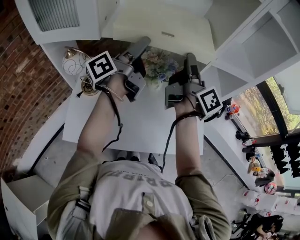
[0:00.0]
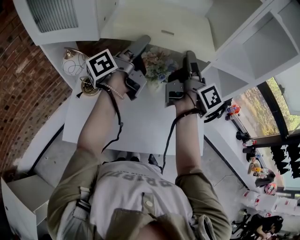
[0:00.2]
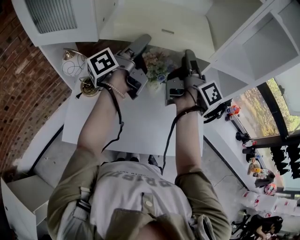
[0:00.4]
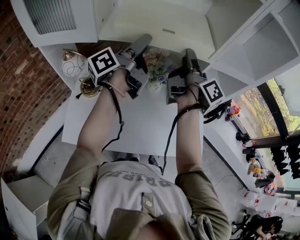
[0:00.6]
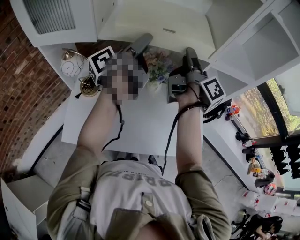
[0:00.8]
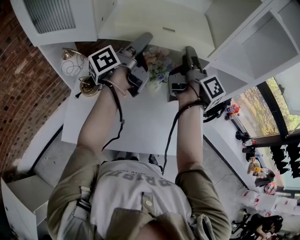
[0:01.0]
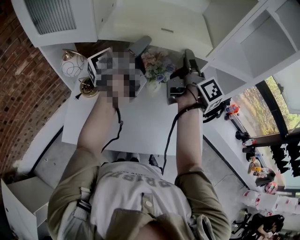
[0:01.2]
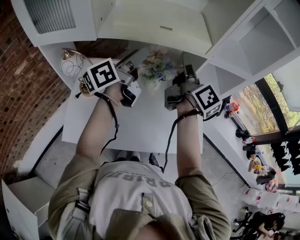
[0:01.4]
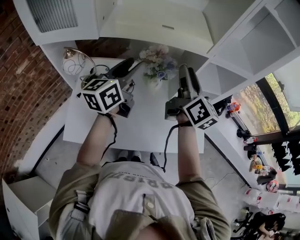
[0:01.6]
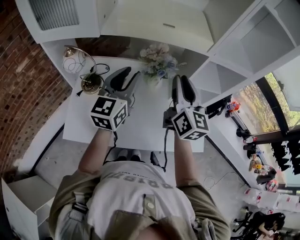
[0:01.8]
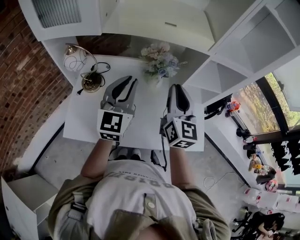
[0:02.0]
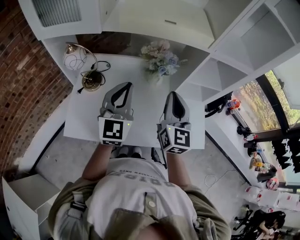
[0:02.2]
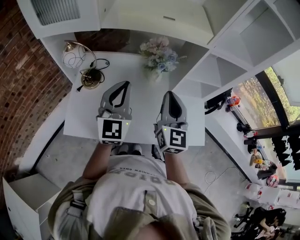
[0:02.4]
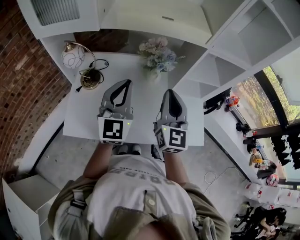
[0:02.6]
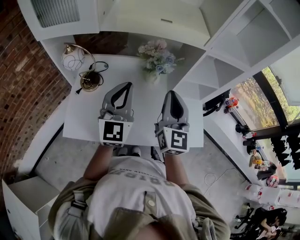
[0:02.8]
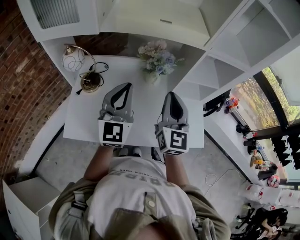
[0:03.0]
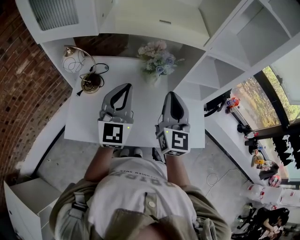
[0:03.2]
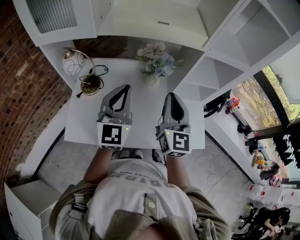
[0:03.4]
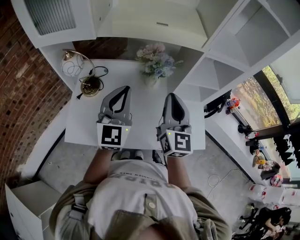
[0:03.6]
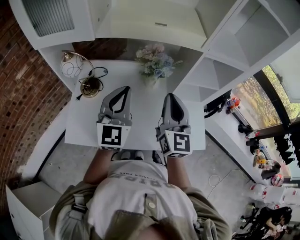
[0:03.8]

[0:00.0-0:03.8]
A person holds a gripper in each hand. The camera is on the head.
0:00.0 to 0:01.2: The grippers stay close to where they were, moving slightly.
0:01.2 to 0:02.6: The left gripper travels backward and downward by roughly 20 cm, rolls clockwise, seen from behind, by about 90 degrees, and closes up. Meanwhile the right gripper travels backward by some 20 cm, twists some 70 degrees counterclockwise, seen from behind, and closes.
0:02.6 to 0:03.8: The grippers stay close to where they were, moving slightly.

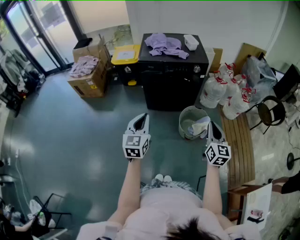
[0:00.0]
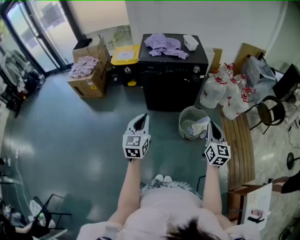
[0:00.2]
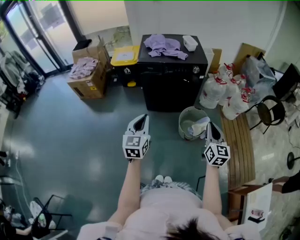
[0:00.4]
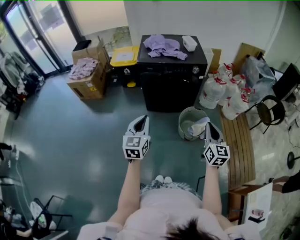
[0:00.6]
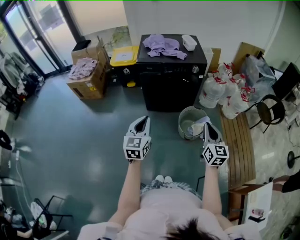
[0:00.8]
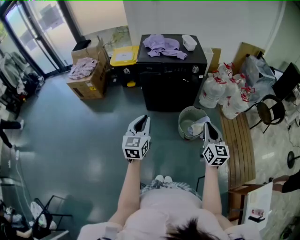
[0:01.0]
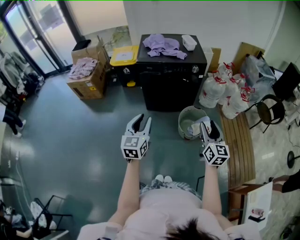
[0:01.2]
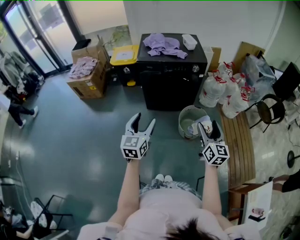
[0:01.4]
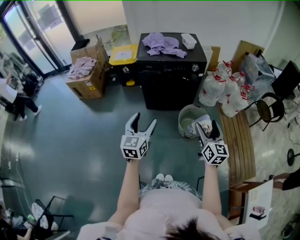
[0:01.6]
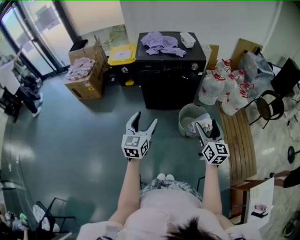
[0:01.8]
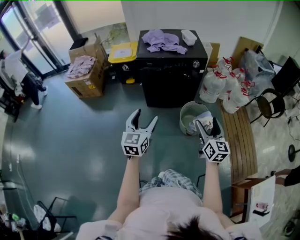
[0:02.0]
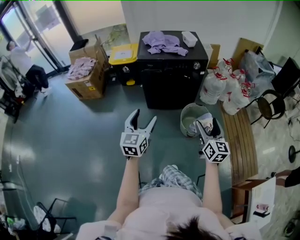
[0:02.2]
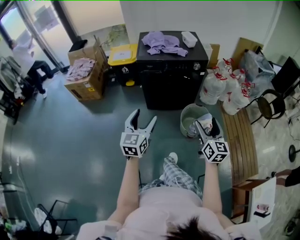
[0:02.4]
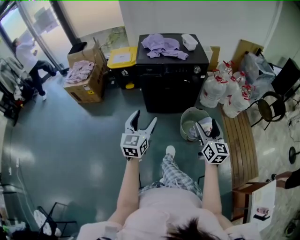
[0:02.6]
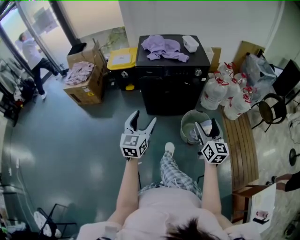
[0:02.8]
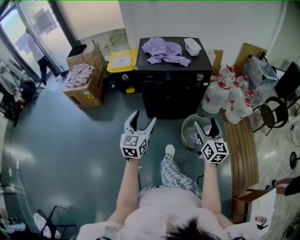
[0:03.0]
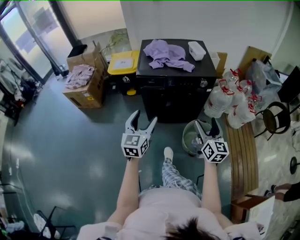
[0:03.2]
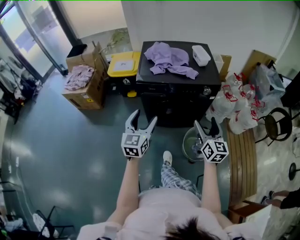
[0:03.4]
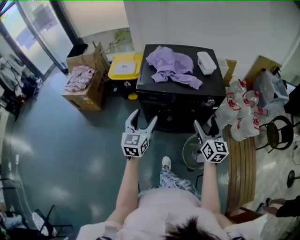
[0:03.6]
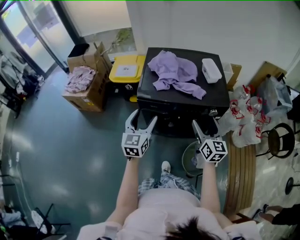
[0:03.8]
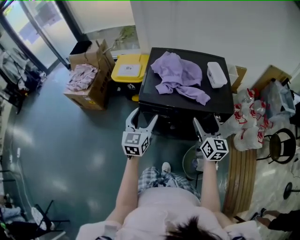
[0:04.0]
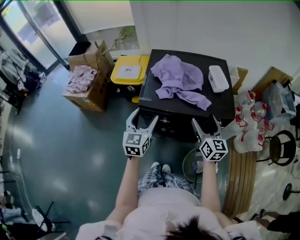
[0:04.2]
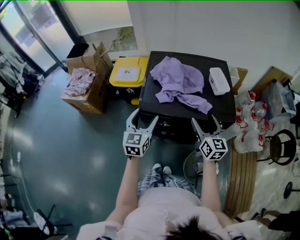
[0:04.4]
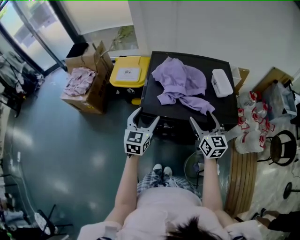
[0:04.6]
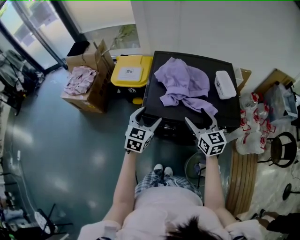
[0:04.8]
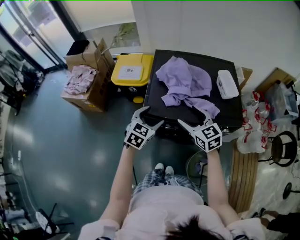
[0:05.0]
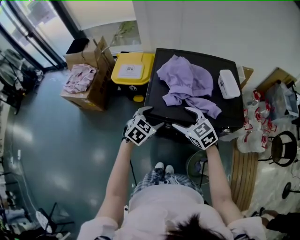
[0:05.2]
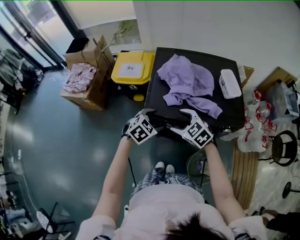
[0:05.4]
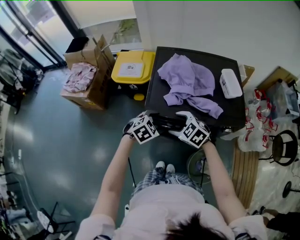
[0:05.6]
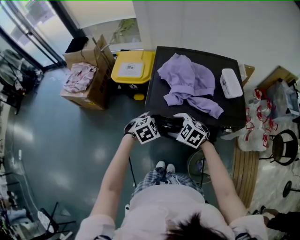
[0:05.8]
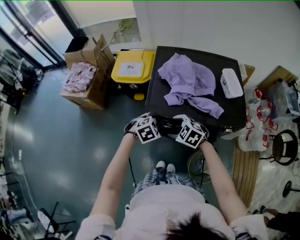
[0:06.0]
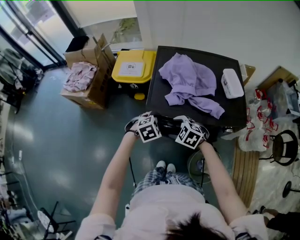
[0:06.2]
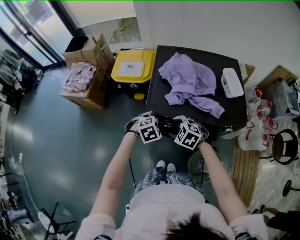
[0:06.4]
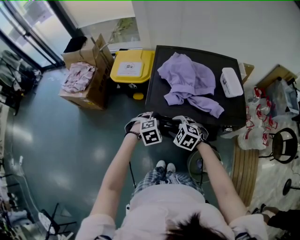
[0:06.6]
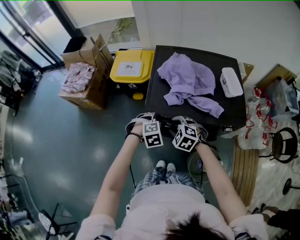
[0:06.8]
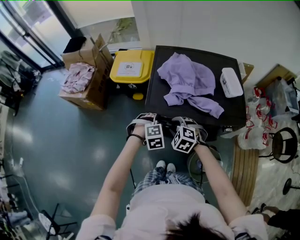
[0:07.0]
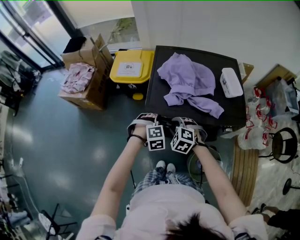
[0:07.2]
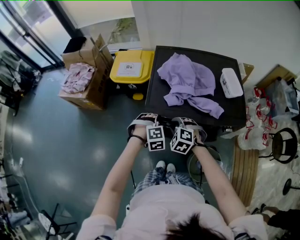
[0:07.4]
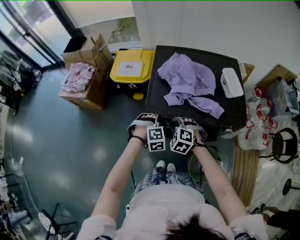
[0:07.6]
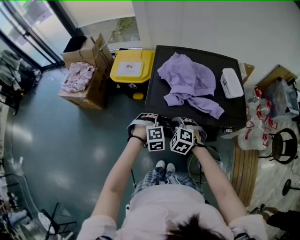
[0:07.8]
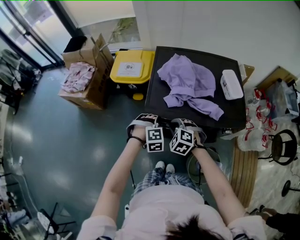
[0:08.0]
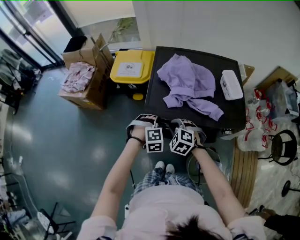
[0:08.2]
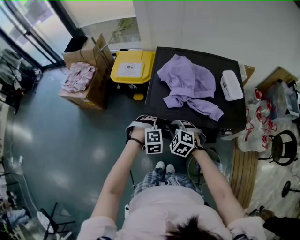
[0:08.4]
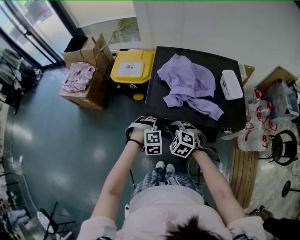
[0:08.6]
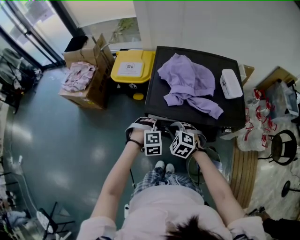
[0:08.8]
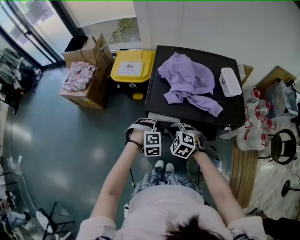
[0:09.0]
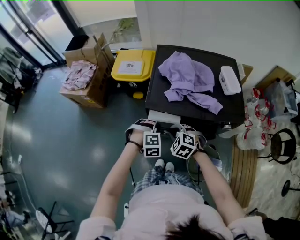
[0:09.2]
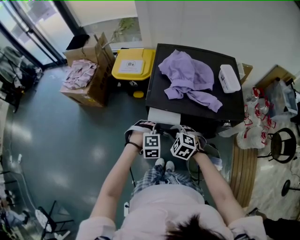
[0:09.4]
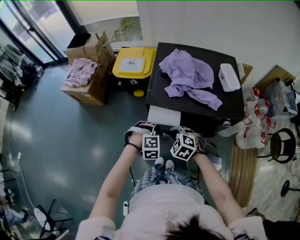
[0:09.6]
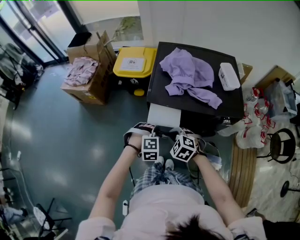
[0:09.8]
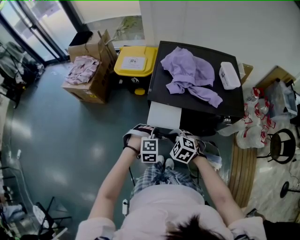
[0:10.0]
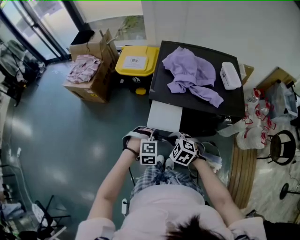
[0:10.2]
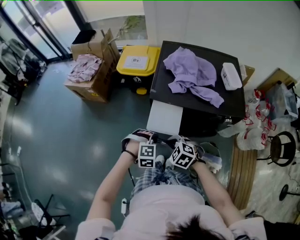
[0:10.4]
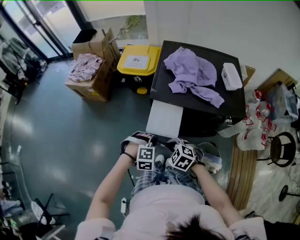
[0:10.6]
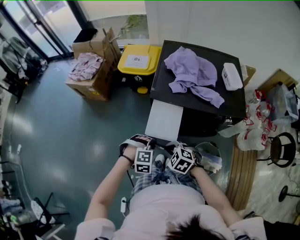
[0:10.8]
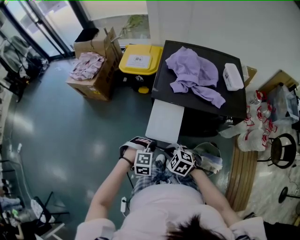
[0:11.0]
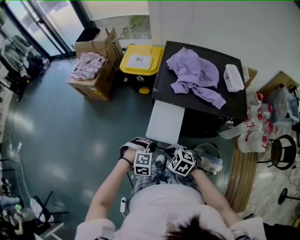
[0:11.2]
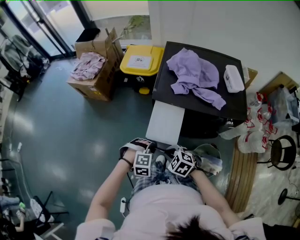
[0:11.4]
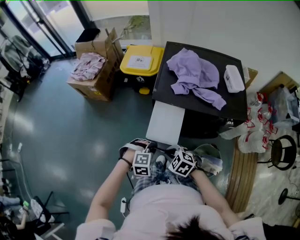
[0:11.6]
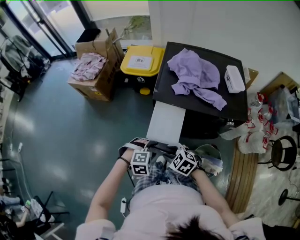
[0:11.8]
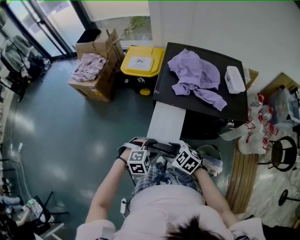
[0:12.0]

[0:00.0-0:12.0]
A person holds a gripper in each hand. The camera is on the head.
0:00.0 to 0:01.6: The left gripper opens its fingers, while the right gripper opens.
0:01.6 to 0:03.0: The two grippers go some 15 cm forward.
0:03.0 to 0:04.4: The pair of grippers is taken forward, some 40 cm.
0:04.4 to 0:06.0: The left gripper shifts some 15 cm downward, and tips its fingers downward by roughly 50 degrees, while the right gripper shifts about 25 cm to the left and downward, and tips its fingers downward by about 50 degrees.
0:06.0 to 0:07.6: The left gripper swivels roughly 40 degrees, and closes. The right gripper swivels some 20 degrees, and closes its fingers.
0:07.6 to 0:09.0: The grippers move only a little.
0:09.0 to 0:10.4: The two grippers go some 15 cm backward.
0:10.4 to 0:12.0: The right gripper opens; the left gripper opens its fingers.

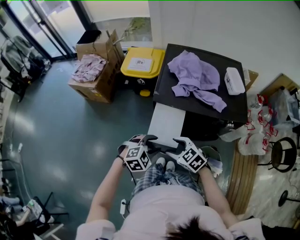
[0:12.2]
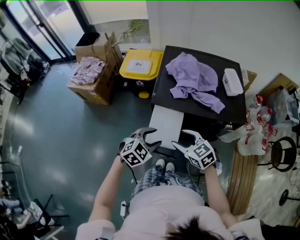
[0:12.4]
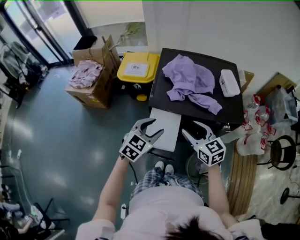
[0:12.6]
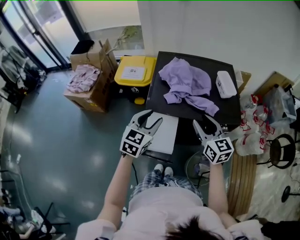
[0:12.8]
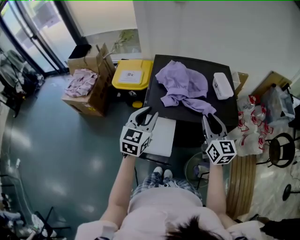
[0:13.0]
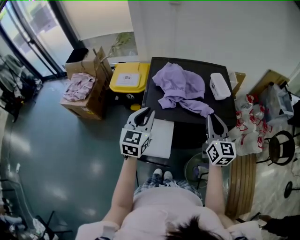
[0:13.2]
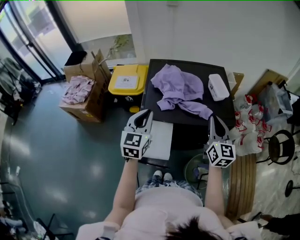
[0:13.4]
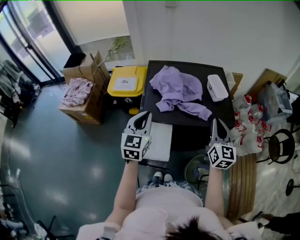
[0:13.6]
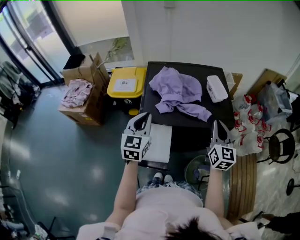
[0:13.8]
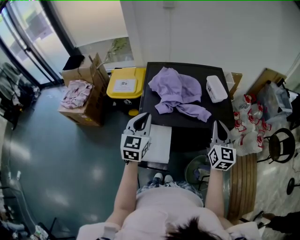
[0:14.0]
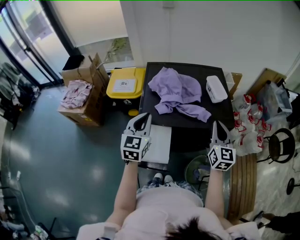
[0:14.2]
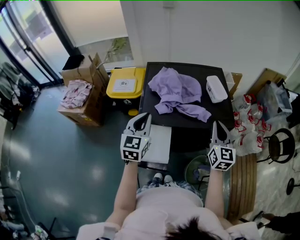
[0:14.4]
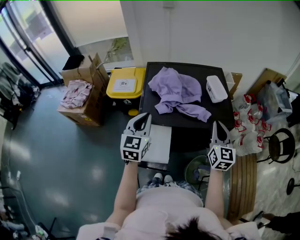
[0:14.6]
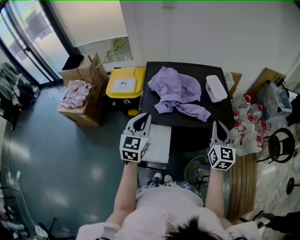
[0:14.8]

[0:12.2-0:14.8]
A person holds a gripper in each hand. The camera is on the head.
0:12.2 to 0:13.4: The left gripper moves forward and upward, some 25 cm, angles its fingers upward, by roughly 40 degrees, and closes, while the right gripper heads to the right, upward and forward, covering roughly 35 cm, points its fingers some 40 degrees further upward, and closes.
0:13.4 to 0:14.8: The grippers make only small movements.

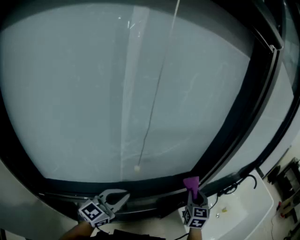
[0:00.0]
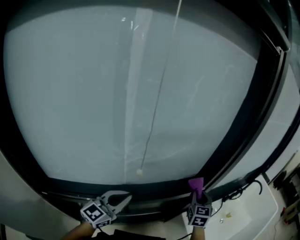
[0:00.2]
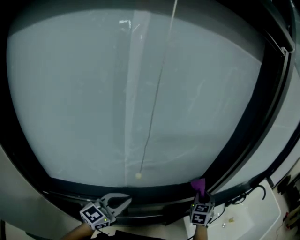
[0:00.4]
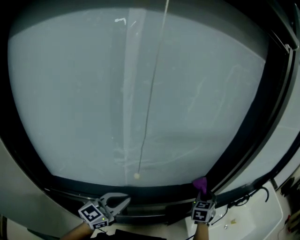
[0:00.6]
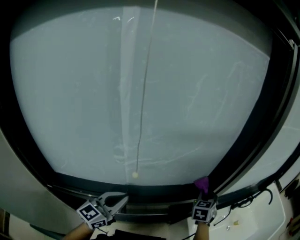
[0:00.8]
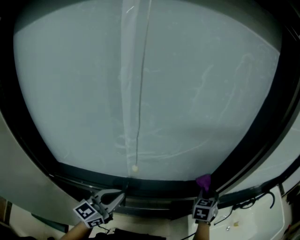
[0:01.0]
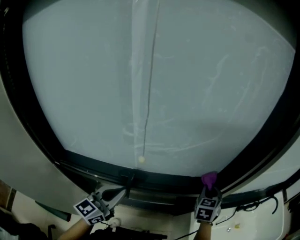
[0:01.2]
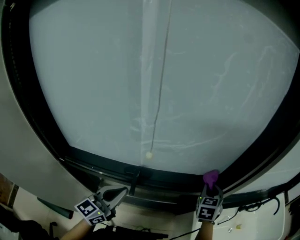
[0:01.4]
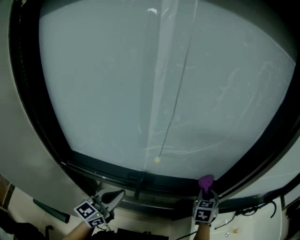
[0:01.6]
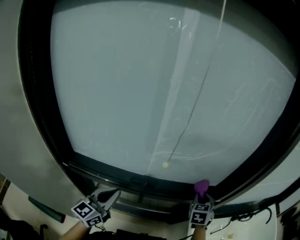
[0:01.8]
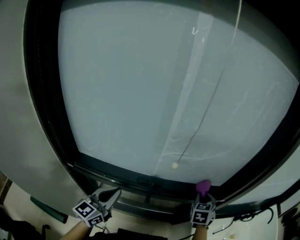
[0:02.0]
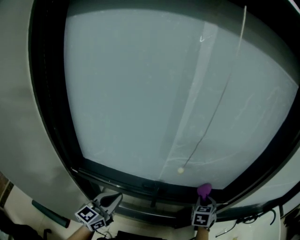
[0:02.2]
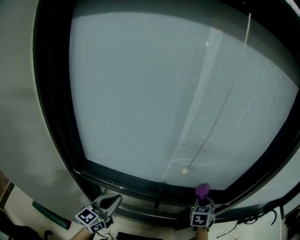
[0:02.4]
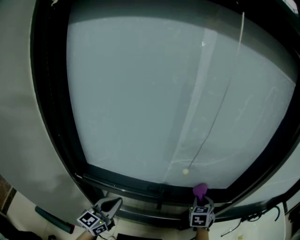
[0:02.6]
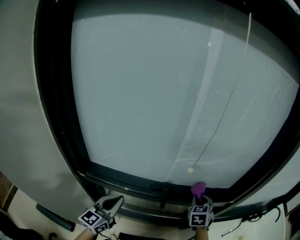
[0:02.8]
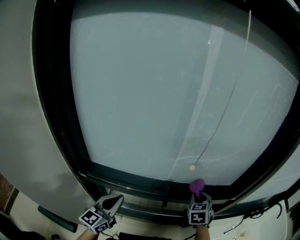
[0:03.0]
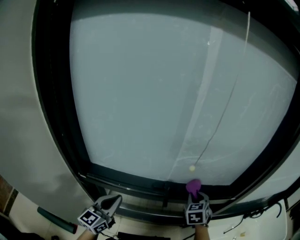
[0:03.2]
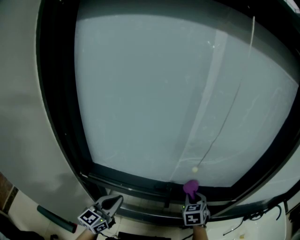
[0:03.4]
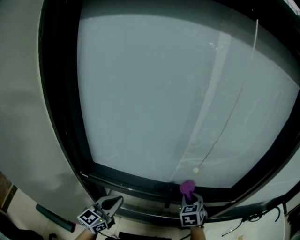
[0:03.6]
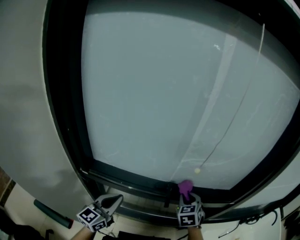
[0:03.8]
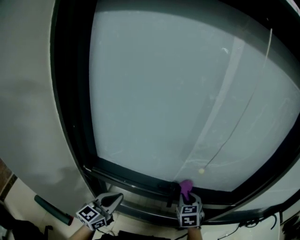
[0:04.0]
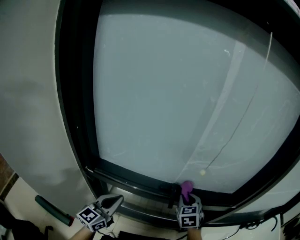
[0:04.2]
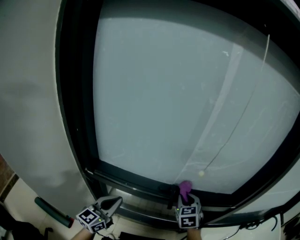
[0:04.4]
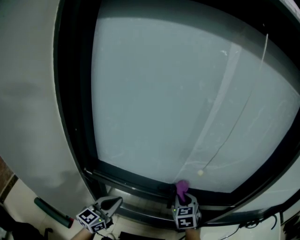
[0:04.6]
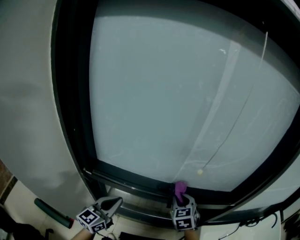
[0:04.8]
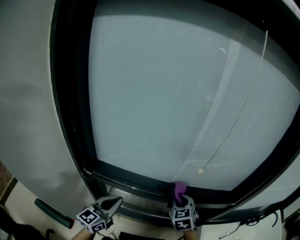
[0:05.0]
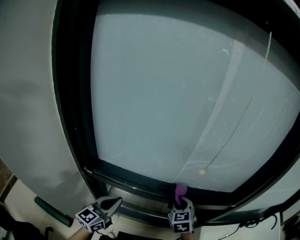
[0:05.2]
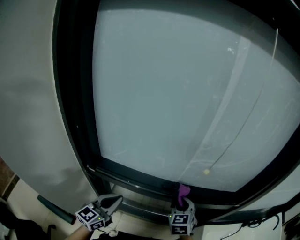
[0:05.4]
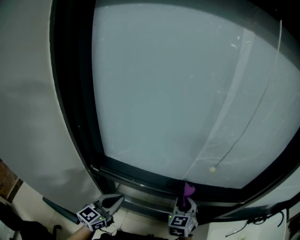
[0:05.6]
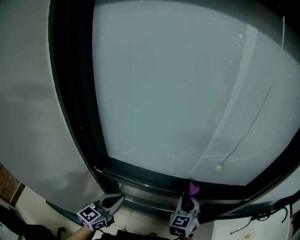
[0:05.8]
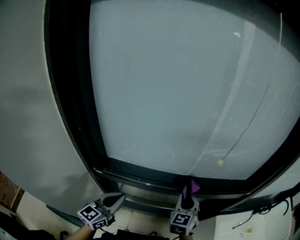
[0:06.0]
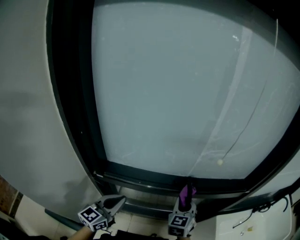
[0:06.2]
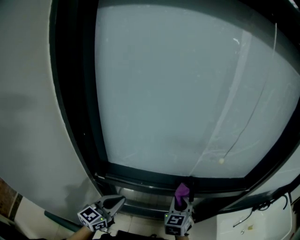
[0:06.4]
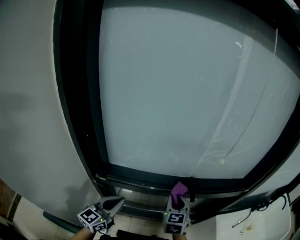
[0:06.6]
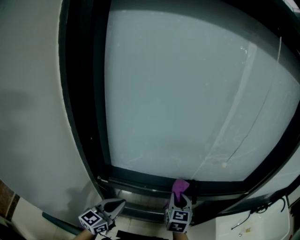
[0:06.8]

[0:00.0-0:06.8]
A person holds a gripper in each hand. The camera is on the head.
0:00.0 to 0:01.4: The left gripper is displaced backward by approximately 5 cm, and changes its angle by about 20 degrees; the right gripper is displaced forward by roughly 5 cm, and changes its angle by some 20 degrees.
0:01.4 to 0:02.8: The grippers both shift to the left and backward by approximately 15 cm.
0:02.8 to 0:04.0: The right gripper is displaced to the left by approximately 10 cm.
0:04.0 to 0:05.4: The right gripper shifts by approximately 5 cm.
0:05.4 to 0:06.8: Both grippers move to the left, some 5 cm. The right gripper turns by roughly 20 degrees.
